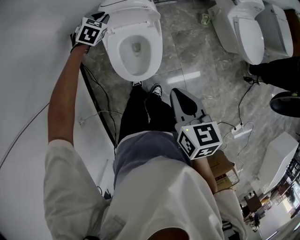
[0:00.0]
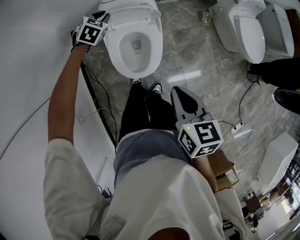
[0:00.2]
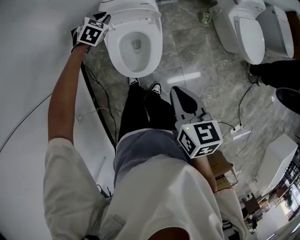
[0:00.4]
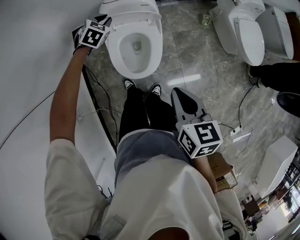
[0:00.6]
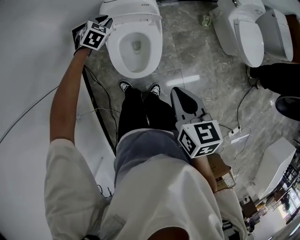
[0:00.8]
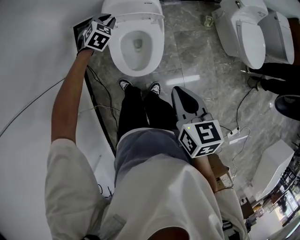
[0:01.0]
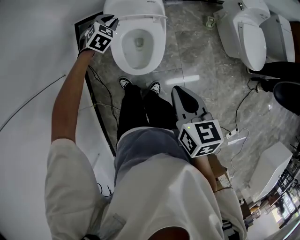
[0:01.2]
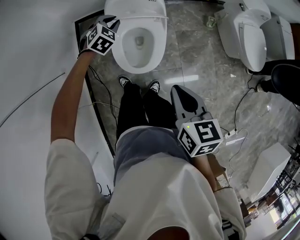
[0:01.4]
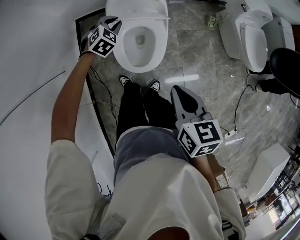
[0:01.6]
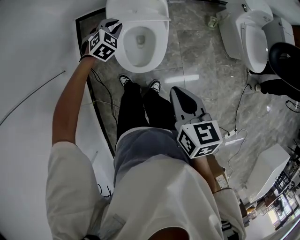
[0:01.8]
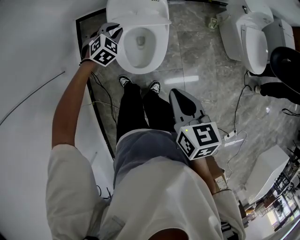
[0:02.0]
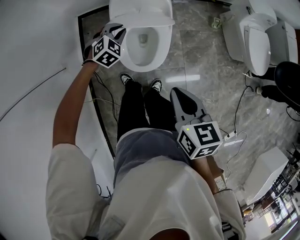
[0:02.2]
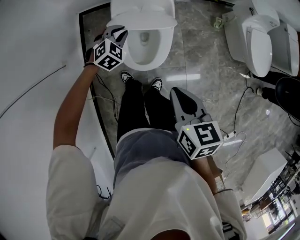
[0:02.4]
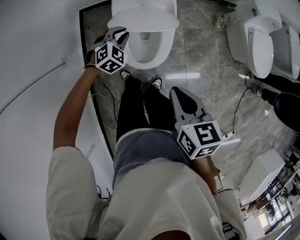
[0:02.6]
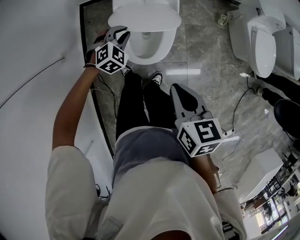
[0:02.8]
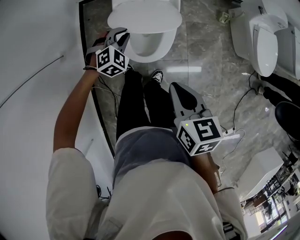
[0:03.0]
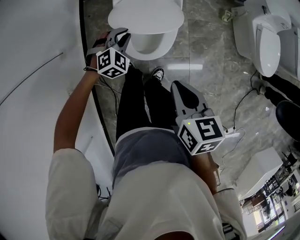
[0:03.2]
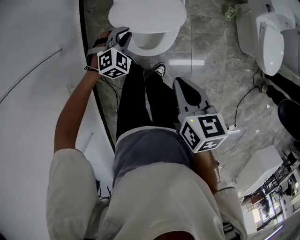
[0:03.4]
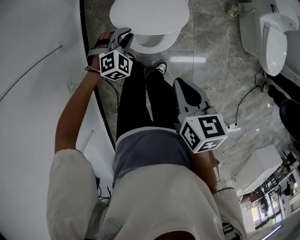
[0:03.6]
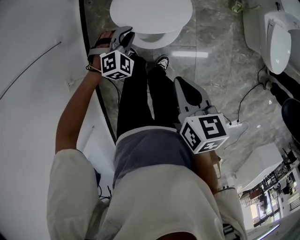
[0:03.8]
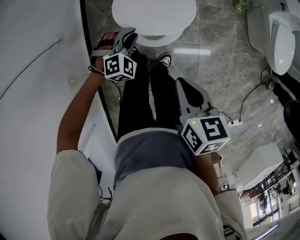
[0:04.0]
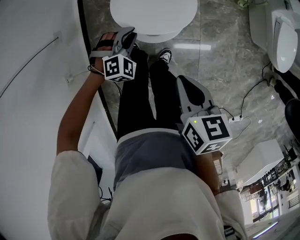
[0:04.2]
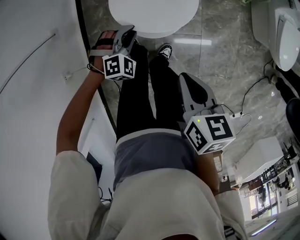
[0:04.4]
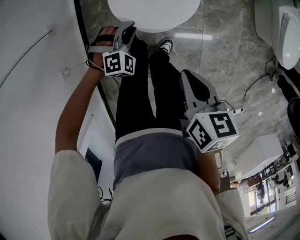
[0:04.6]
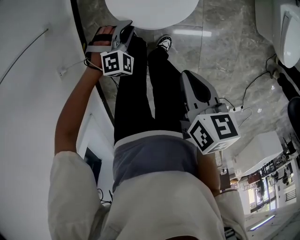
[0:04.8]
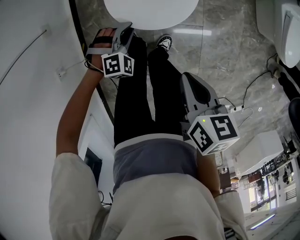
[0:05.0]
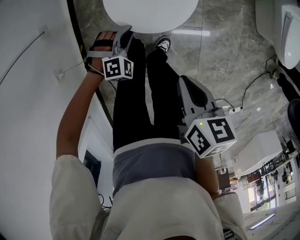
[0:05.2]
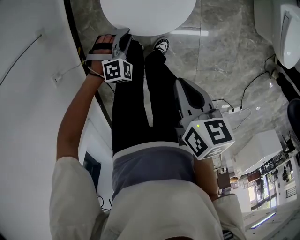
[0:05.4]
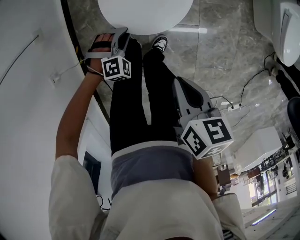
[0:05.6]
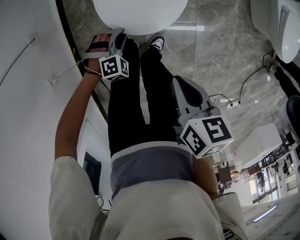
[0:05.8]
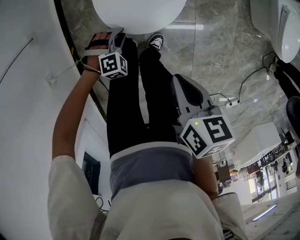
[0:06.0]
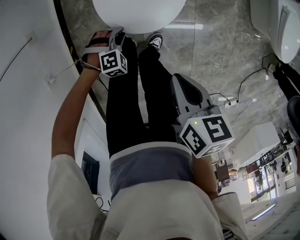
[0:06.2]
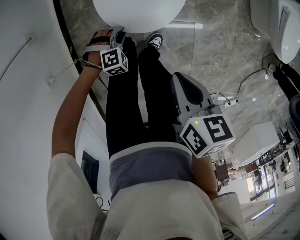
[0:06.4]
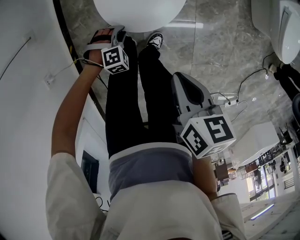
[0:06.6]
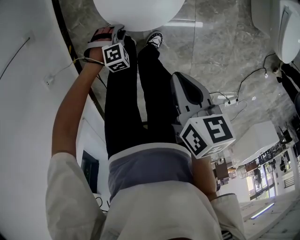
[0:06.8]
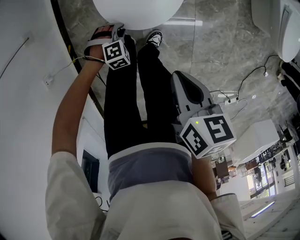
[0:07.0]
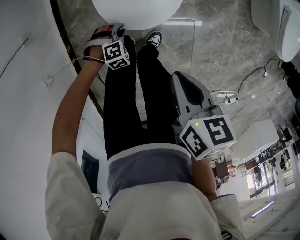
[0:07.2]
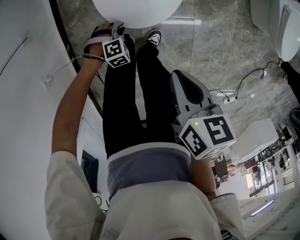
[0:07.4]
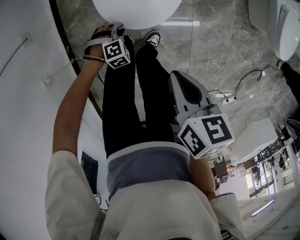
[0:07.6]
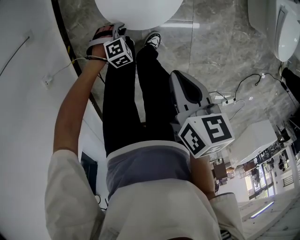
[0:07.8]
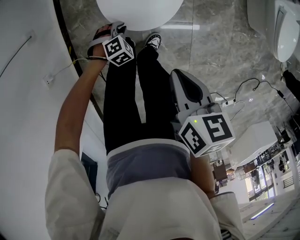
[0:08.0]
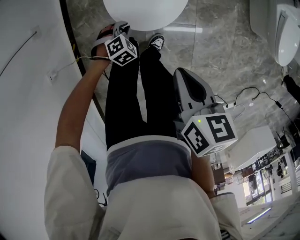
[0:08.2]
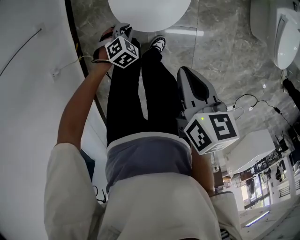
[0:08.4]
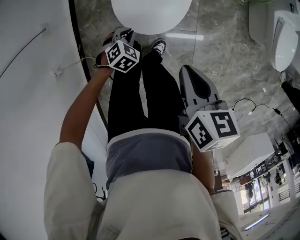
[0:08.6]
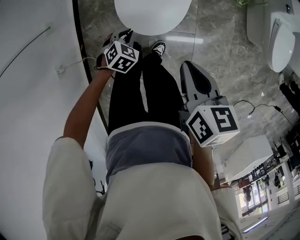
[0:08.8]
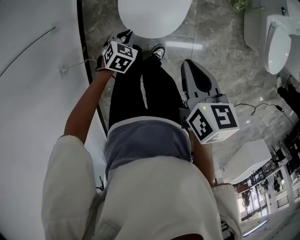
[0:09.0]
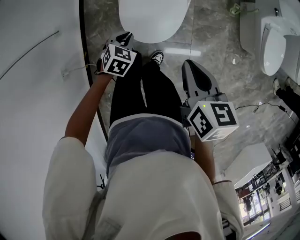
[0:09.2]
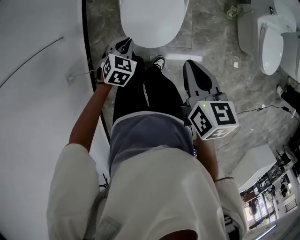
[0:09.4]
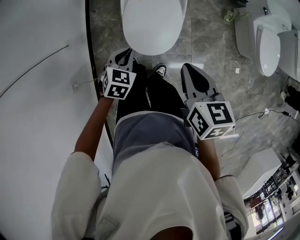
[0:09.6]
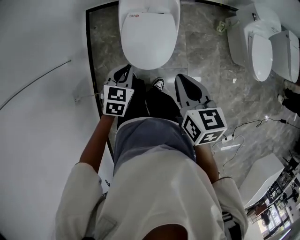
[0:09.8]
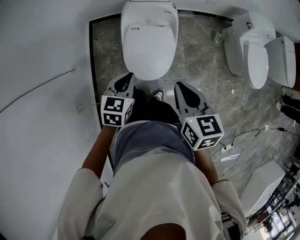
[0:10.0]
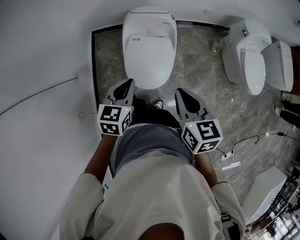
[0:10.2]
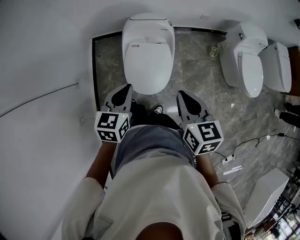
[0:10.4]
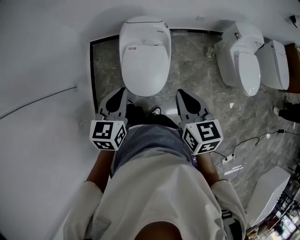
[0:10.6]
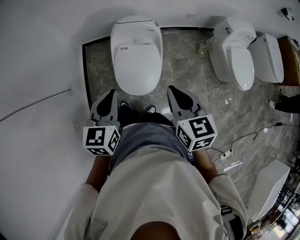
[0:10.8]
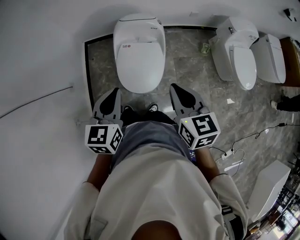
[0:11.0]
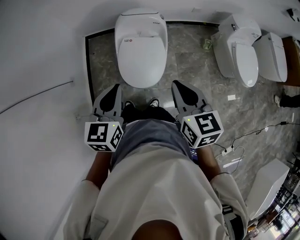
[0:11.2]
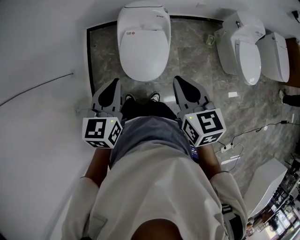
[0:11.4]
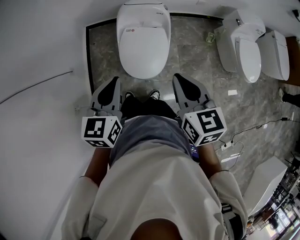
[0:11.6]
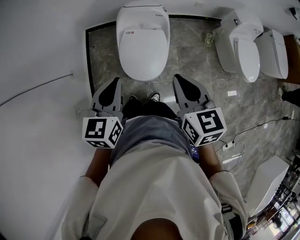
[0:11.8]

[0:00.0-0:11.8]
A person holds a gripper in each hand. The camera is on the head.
0:00.0 to 0:01.4: The left gripper is displaced backward by roughly 10 cm.
0:01.4 to 0:03.0: The right gripper shifts approximately 5 cm downward; the left gripper shifts about 15 cm backward and downward.
0:03.0 to 0:04.4: The right gripper heads downward, covering approximately 10 cm. The left gripper heads downward and backward, covering approximately 15 cm.
0:04.4 to 0:06.0: The left gripper shifts approximately 15 cm downward. The right gripper travels downward by roughly 10 cm.
0:06.0 to 0:07.4: The left gripper travels downward by some 5 cm.
0:07.4 to 0:08.8: The right gripper goes approximately 10 cm upward; the left gripper travels upward by about 15 cm, and turns by roughly 40 degrees.
0:08.8 to 0:10.4: The left gripper goes approximately 40 cm upward, and angles its fingers upward, by about 30 degrees. Meanwhile the right gripper travels upward by some 20 cm, and changes its angle by some 20 degrees.
0:10.4 to 0:11.8: The right gripper changes place by some 5 cm. Meanwhile the left gripper heads backward, covering about 5 cm.

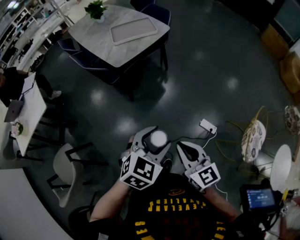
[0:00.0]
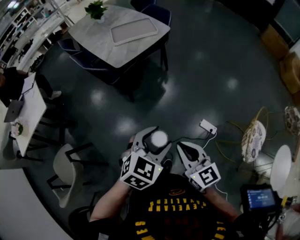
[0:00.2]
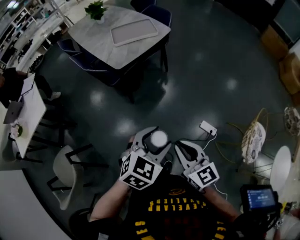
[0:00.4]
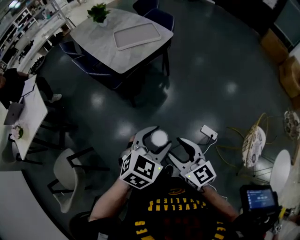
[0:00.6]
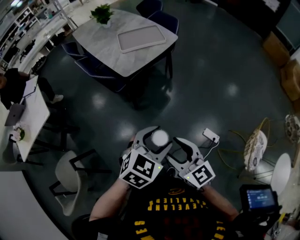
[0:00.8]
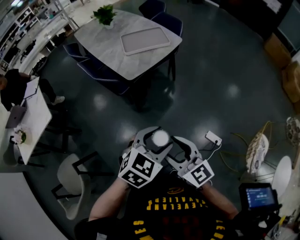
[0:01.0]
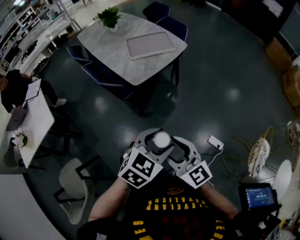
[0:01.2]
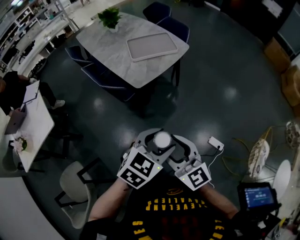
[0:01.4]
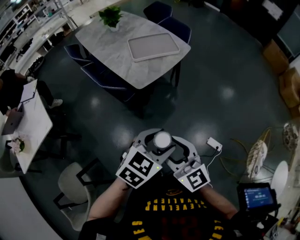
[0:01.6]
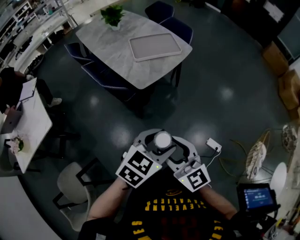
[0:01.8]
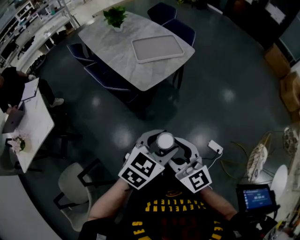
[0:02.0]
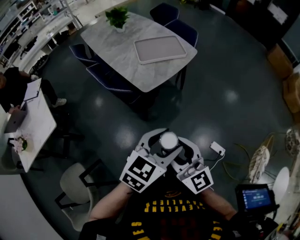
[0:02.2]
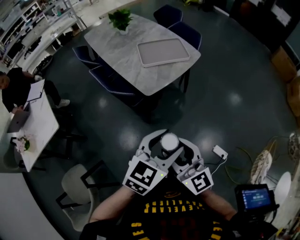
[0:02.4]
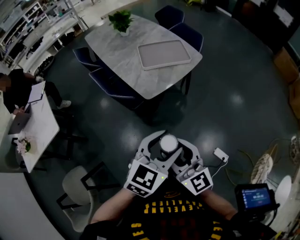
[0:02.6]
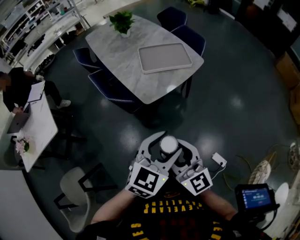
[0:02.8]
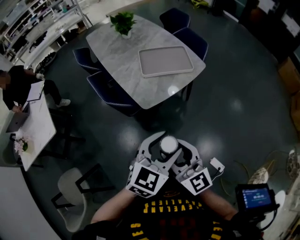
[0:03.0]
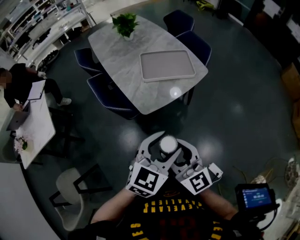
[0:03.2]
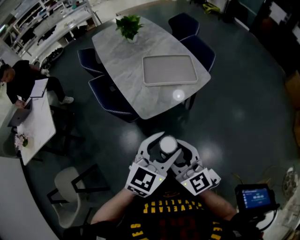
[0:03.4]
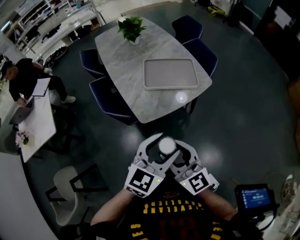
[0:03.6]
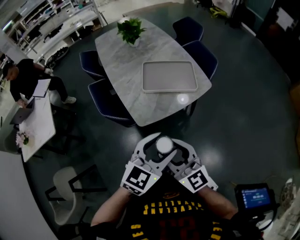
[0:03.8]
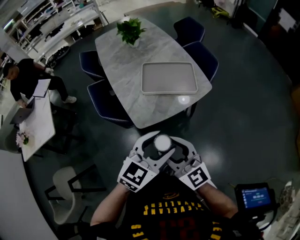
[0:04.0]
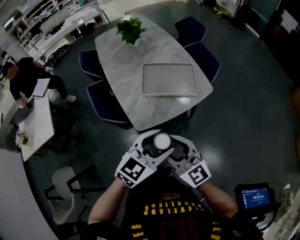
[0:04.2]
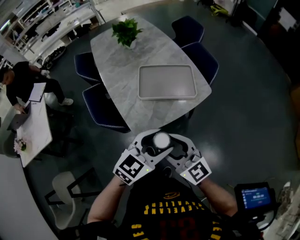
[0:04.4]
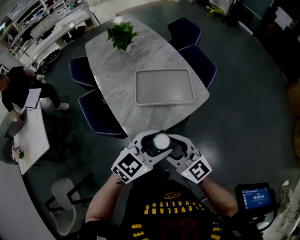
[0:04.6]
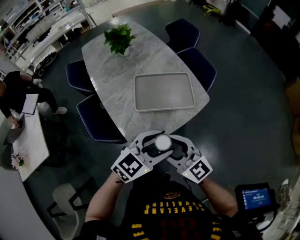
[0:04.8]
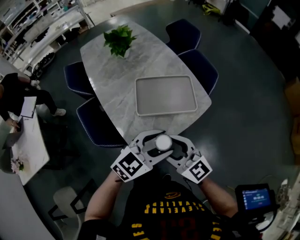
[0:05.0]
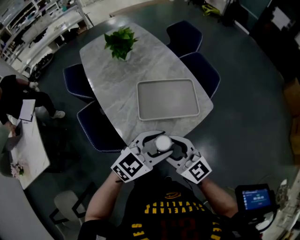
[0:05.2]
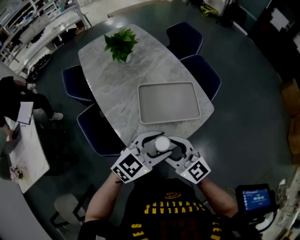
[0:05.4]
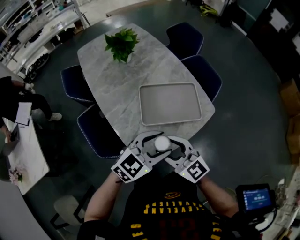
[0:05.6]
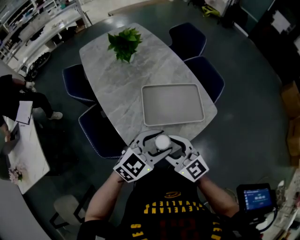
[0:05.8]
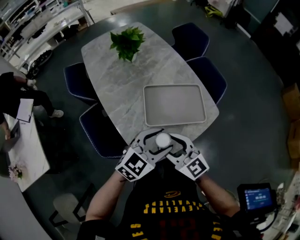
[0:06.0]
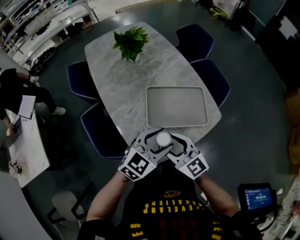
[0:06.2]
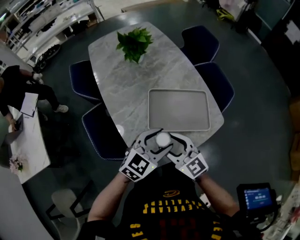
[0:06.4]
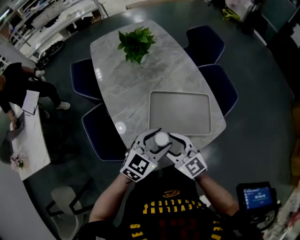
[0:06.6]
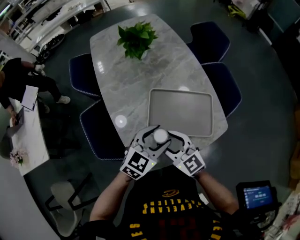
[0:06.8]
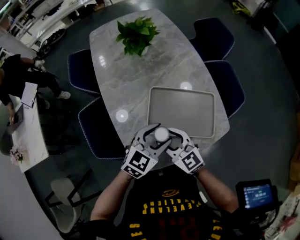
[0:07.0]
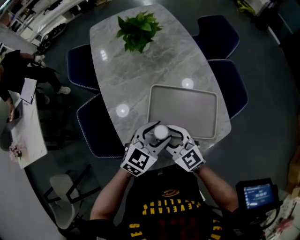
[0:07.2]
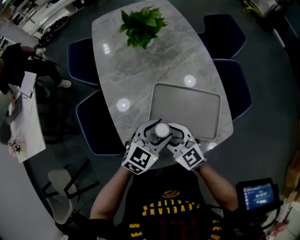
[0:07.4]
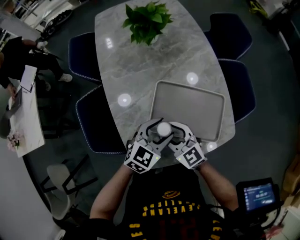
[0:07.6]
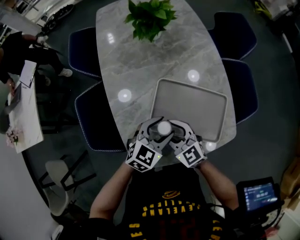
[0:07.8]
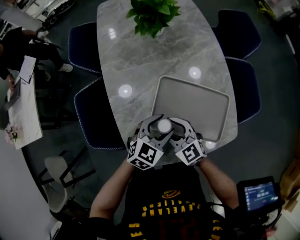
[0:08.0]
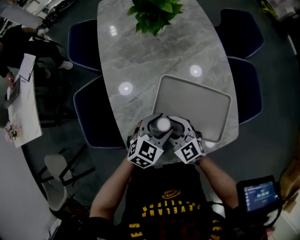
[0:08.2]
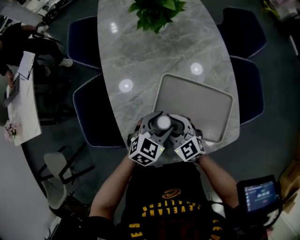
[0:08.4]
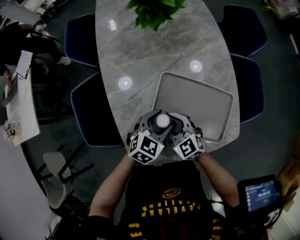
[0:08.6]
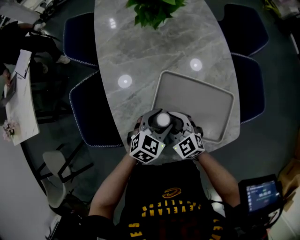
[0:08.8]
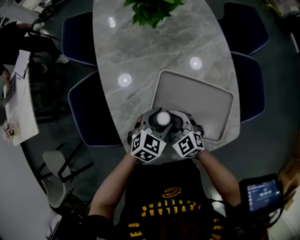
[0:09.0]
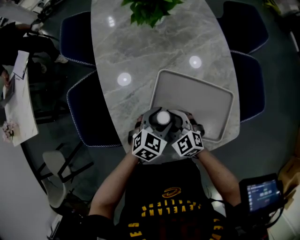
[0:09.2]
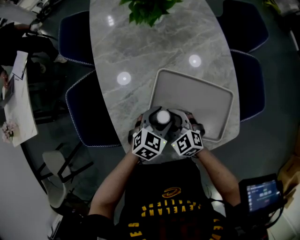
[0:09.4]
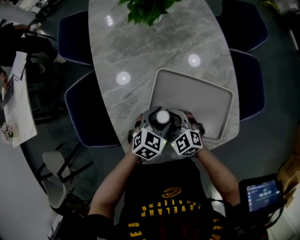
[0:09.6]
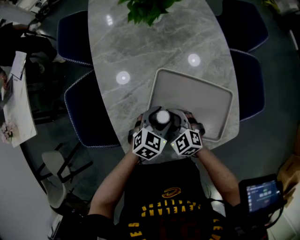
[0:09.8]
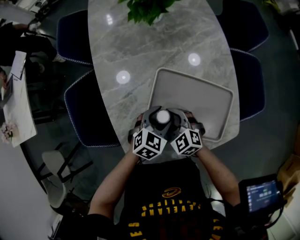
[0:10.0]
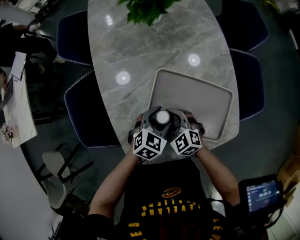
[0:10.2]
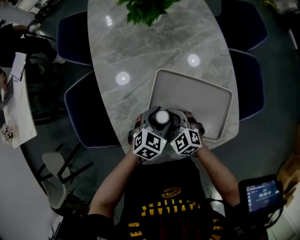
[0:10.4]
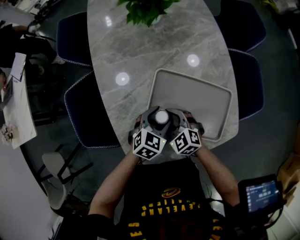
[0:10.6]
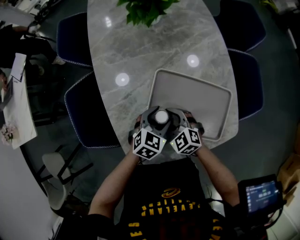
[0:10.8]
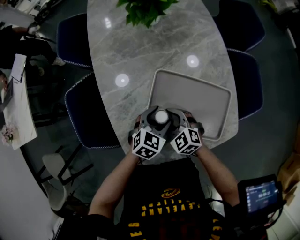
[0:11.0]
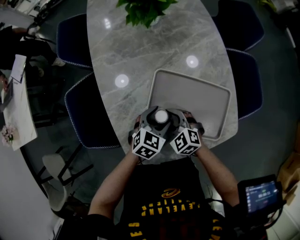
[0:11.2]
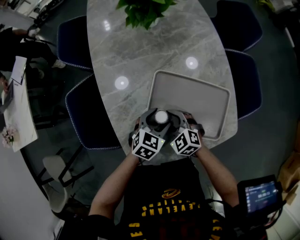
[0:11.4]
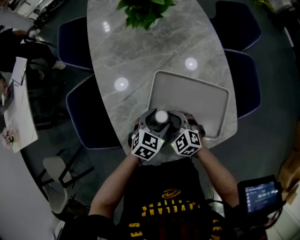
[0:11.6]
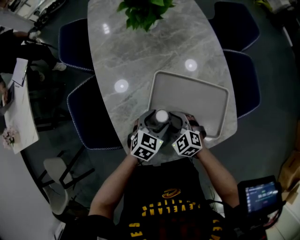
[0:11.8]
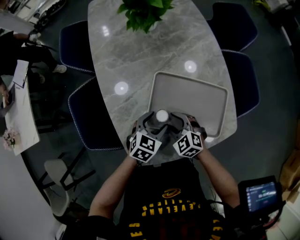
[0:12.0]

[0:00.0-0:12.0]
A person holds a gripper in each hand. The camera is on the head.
0:00.0 to 0:01.6: The two grippers go roughly 25 cm to the left and forward. The right gripper opens.
0:01.6 to 0:03.0: The two grippers go roughly 15 cm forward. The left gripper turns by approximately 20 degrees.
0:03.0 to 0:04.4: The grippers both shift forward by some 20 cm.
0:04.4 to 0:06.0: Both grippers travel together forward and to the left, approximately 20 cm.
0:06.0 to 0:07.6: The grippers both shift forward and downward by roughly 20 cm. The left gripper rotates about 30 degrees. Meanwhile the right gripper changes its angle by roughly 20 degrees.
0:07.6 to 0:09.0: The grippers both shift downward by approximately 5 cm.
0:09.0 to 0:12.0: The grippers stay close to where they were, moving slightly.
